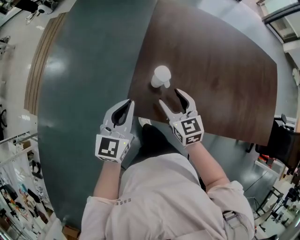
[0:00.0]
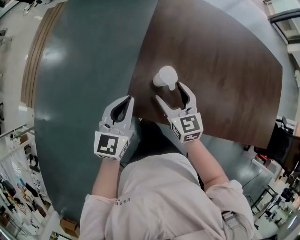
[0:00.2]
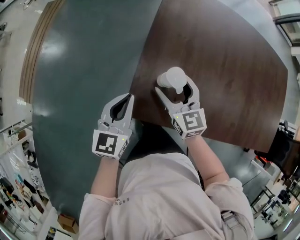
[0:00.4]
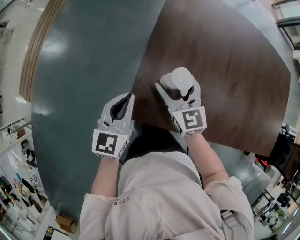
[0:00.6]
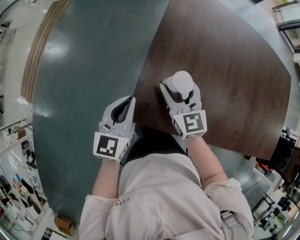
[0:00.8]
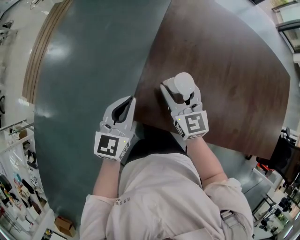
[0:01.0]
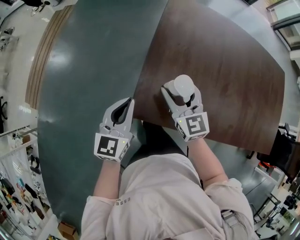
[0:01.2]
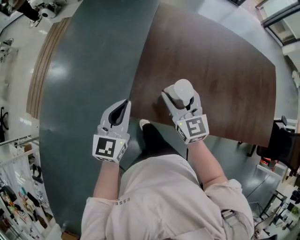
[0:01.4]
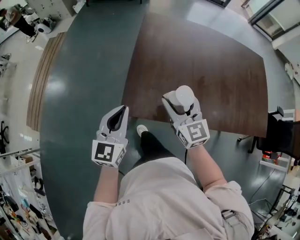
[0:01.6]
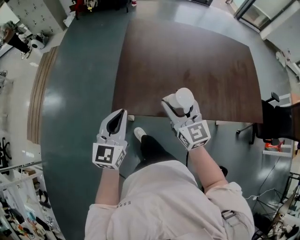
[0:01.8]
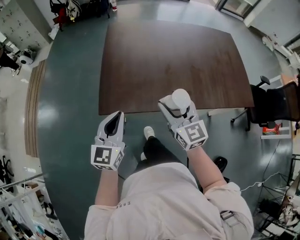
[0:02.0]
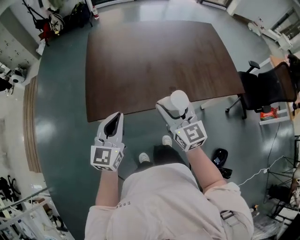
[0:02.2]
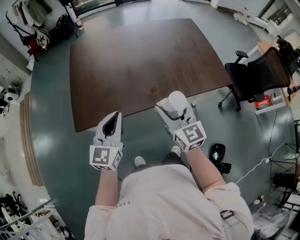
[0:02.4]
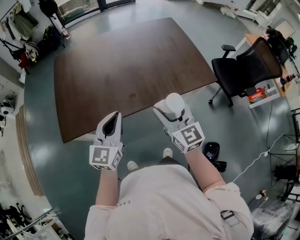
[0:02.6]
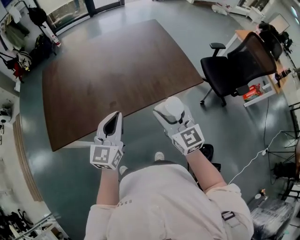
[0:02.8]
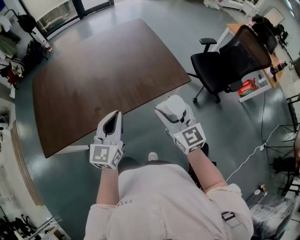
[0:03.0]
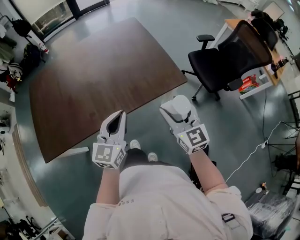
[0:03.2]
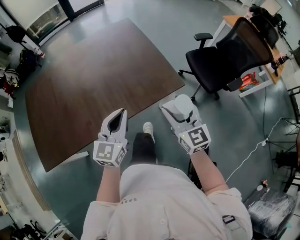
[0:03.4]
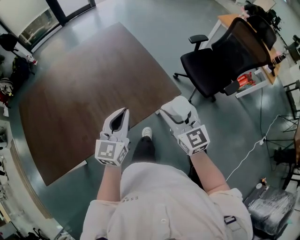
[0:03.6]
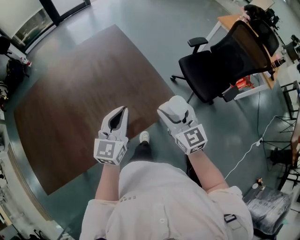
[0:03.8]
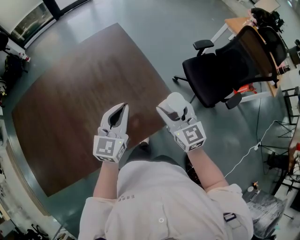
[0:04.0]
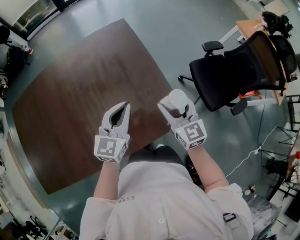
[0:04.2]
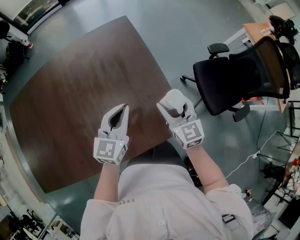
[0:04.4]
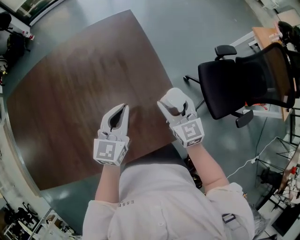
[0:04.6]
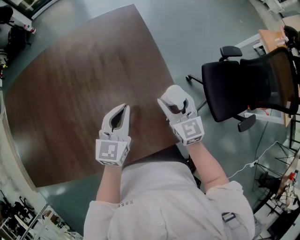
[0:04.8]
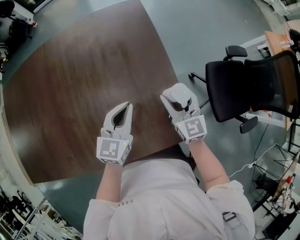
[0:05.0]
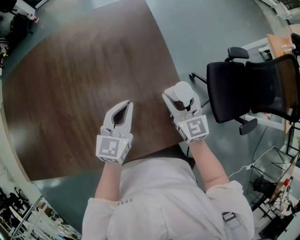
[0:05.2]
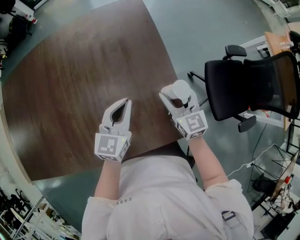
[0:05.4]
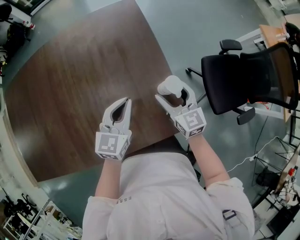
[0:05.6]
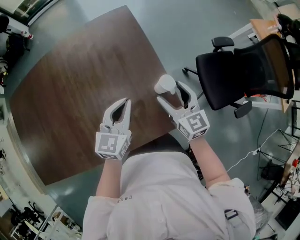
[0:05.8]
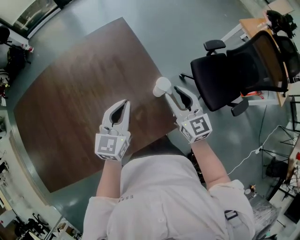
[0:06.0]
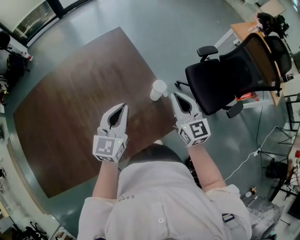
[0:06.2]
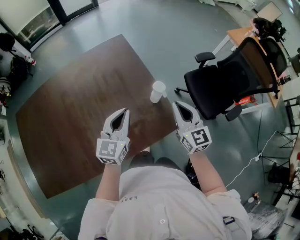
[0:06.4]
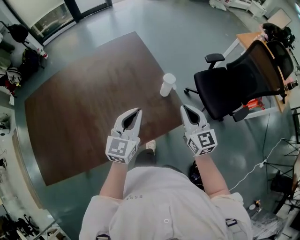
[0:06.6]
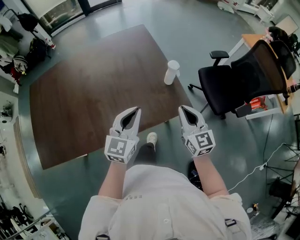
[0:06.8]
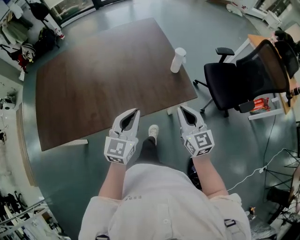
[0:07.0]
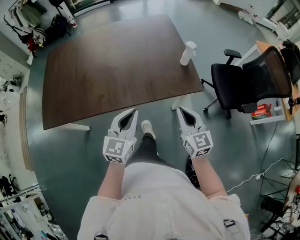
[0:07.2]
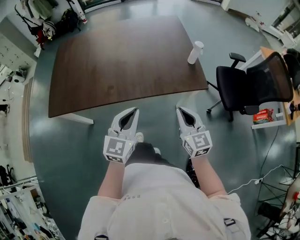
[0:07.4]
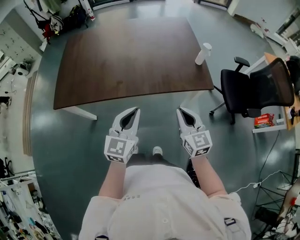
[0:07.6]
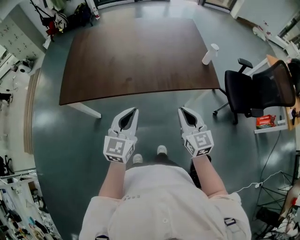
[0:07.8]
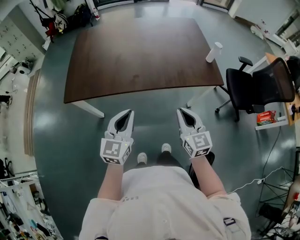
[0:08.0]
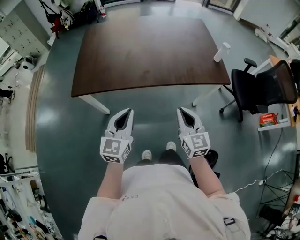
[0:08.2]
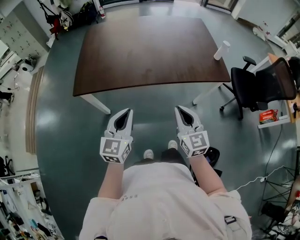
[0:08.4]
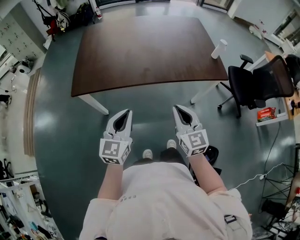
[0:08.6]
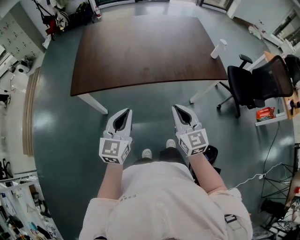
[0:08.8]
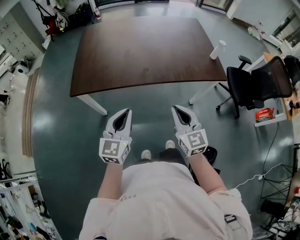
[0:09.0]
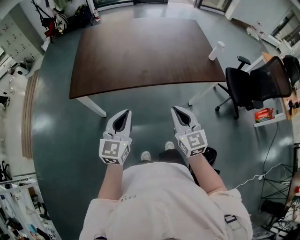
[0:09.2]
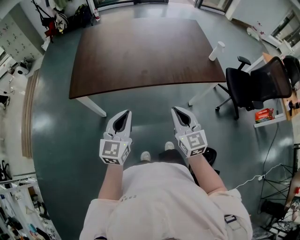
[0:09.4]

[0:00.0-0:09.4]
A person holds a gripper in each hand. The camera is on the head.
0:00.0 to 0:01.6: The left gripper moves some 10 cm downward and comes back. Meanwhile the right gripper is displaced upward by approximately 10 cm, and rotates about 20 degrees.
0:01.6 to 0:03.2: The pair of grippers is taken some 70 cm. The left gripper swivels some 40 degrees; the right gripper turns by about 30 degrees.
0:03.2 to 0:04.8: Both grippers move forward and downward, some 40 cm.
0:04.8 to 0:06.2: The left gripper is displaced upward by roughly 10 cm. Meanwhile the right gripper travels upward and backward by approximately 15 cm, and closes up.
0:06.2 to 0:07.8: The two grippers travel together, backward and to the left, roughly 50 cm. The right gripper rotates approximately 20 degrees. The left gripper rotates some 20 degrees.
0:07.8 to 0:09.4: Both grippers travel together to the left and backward, approximately 15 cm.

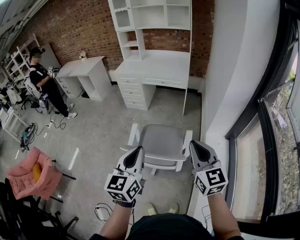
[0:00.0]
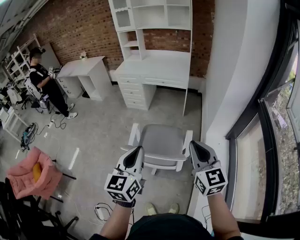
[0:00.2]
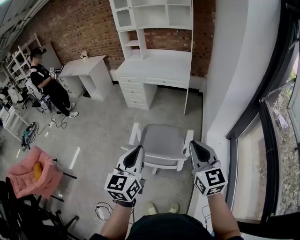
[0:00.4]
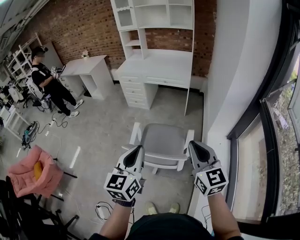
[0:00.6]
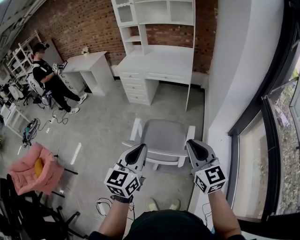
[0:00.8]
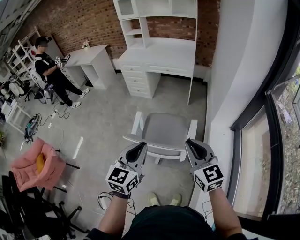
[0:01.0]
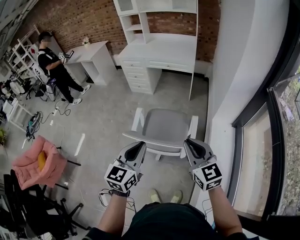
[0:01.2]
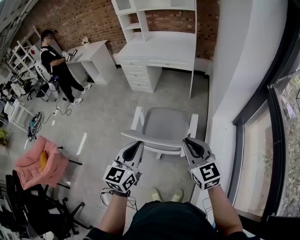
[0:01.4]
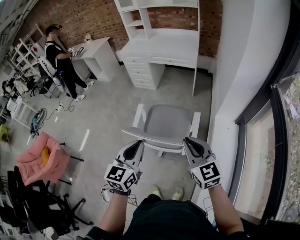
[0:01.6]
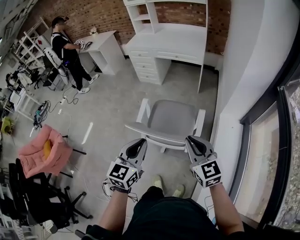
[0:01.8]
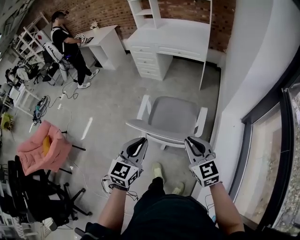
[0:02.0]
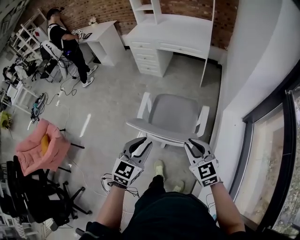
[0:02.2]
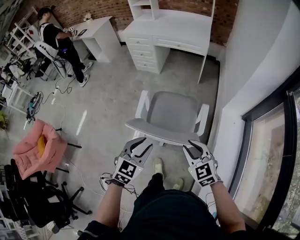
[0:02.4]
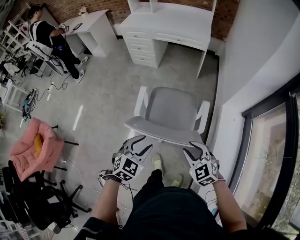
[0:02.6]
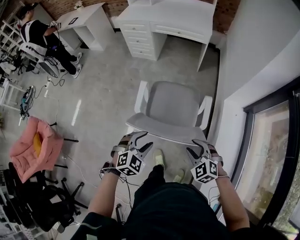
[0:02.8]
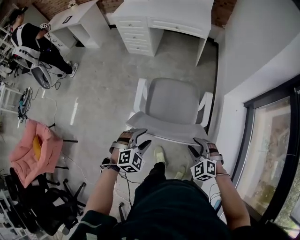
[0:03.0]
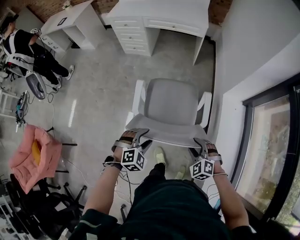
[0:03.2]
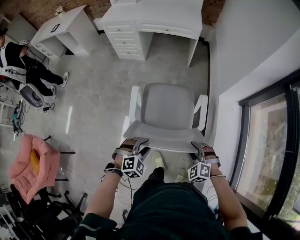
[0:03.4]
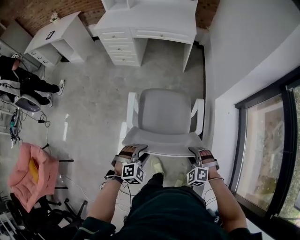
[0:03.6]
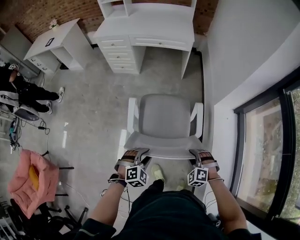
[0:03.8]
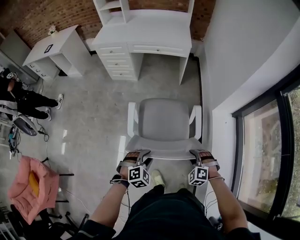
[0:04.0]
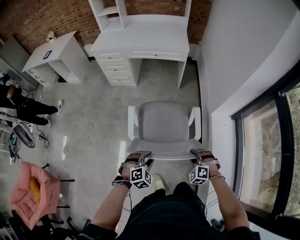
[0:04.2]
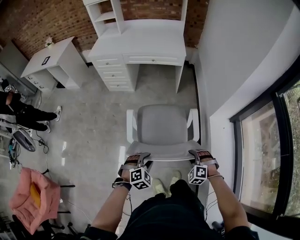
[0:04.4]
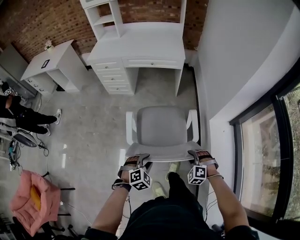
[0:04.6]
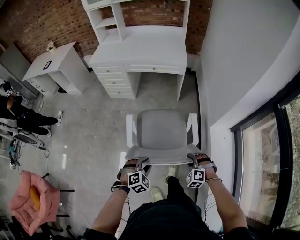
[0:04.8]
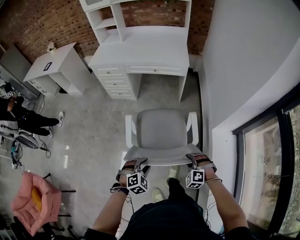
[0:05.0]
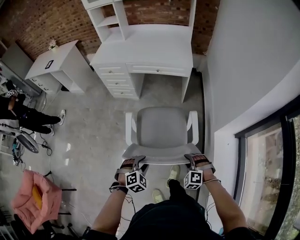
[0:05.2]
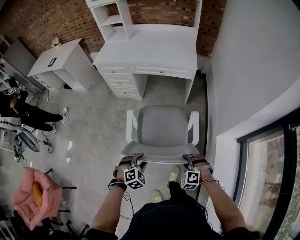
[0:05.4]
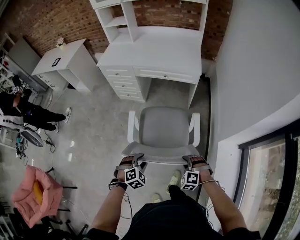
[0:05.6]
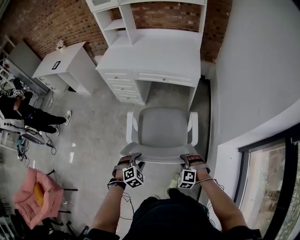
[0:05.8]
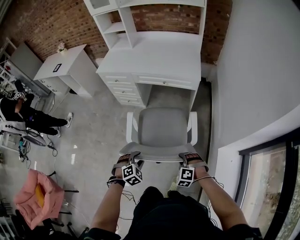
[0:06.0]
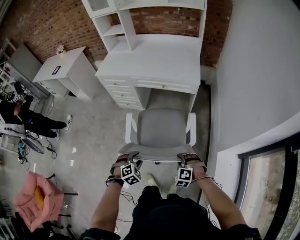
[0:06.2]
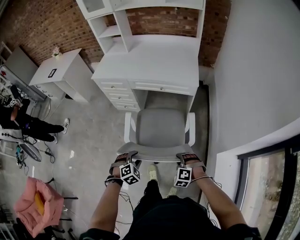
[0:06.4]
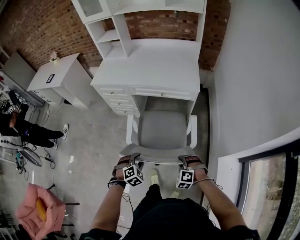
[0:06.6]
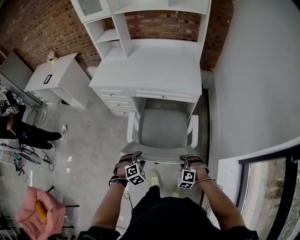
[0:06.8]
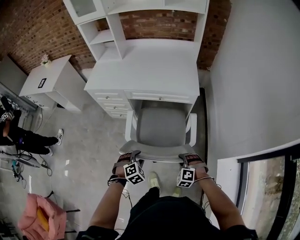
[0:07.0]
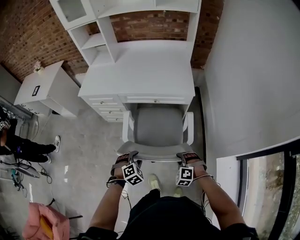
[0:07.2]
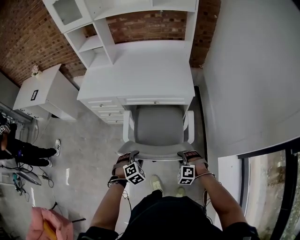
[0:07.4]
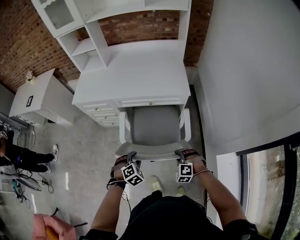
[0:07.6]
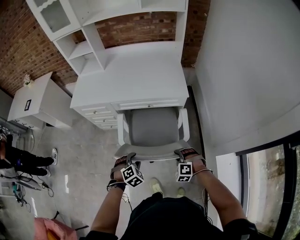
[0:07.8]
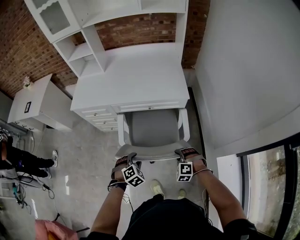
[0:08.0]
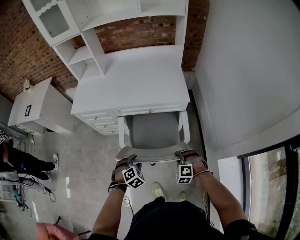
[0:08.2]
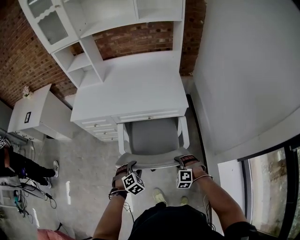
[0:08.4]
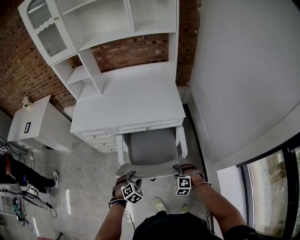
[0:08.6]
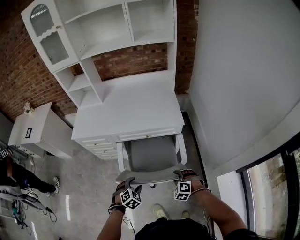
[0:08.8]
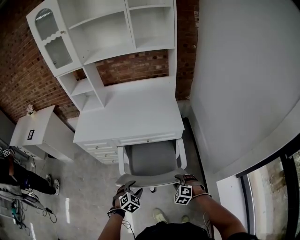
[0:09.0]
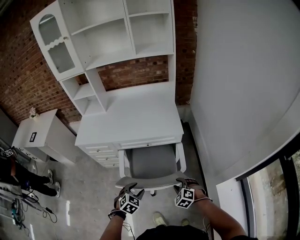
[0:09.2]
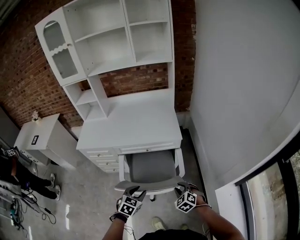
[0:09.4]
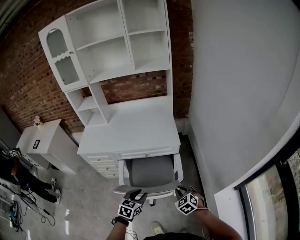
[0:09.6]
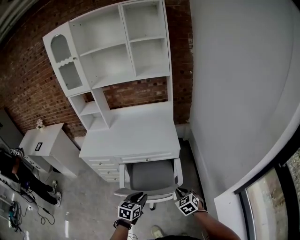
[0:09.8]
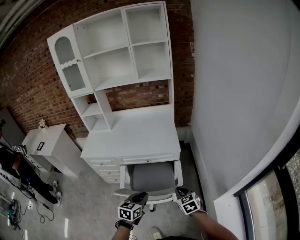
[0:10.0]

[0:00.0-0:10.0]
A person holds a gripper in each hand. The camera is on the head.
0:00.0 to 0:01.4: The two grippers go about 5 cm downward.
0:01.4 to 0:02.8: The two grippers go some 20 cm downward. The right gripper points its fingers approximately 40 degrees further downward, and opens its fingers, while the left gripper angles its fingers downward, by some 40 degrees, and opens its fingers.
0:02.8 to 0:04.2: The grippers both shift forward and downward by approximately 15 cm. The right gripper changes its angle by roughly 30 degrees.
0:04.2 to 0:05.8: Both grippers travel together forward, about 25 cm.
0:05.8 to 0:07.2: Both grippers move forward, some 20 cm.
0:07.2 to 0:08.6: Both grippers travel together forward, some 5 cm.
0:08.6 to 0:10.0: The two grippers go some 20 cm upward and to the right. The left gripper rotates around the line of its fingers by roughly 40 degrees, counterclockwise from behind, and closes up; the right gripper rotates around the line of its fingers by approximately 50 degrees, clockwise from behind, and closes its fingers.

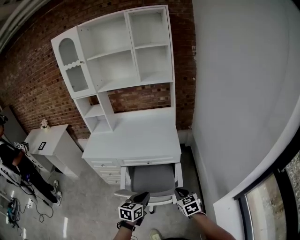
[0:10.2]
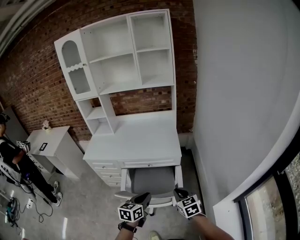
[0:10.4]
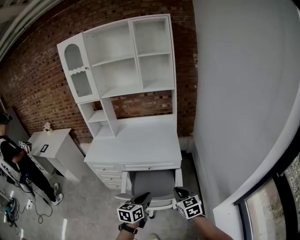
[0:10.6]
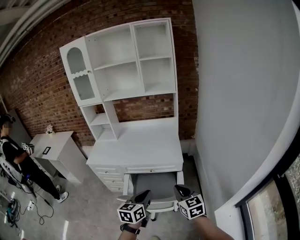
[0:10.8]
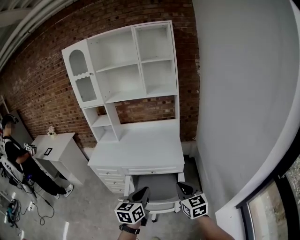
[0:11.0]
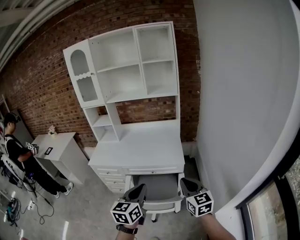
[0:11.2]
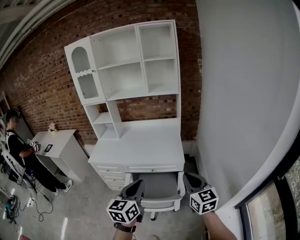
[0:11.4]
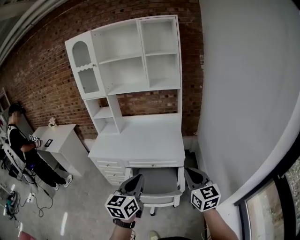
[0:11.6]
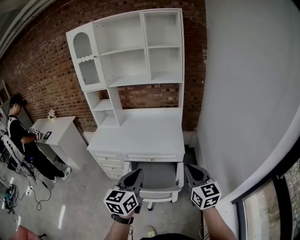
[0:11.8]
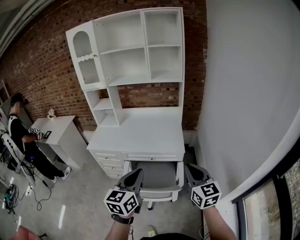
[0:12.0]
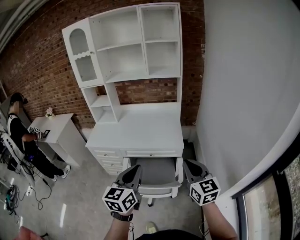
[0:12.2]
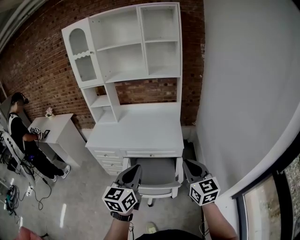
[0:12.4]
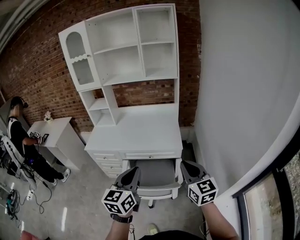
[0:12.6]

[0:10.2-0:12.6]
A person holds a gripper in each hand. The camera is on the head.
0:10.2 to 0:11.4: Both grippers move upward, some 20 cm. The left gripper swivels roughly 20 degrees; the right gripper changes its angle by roughly 30 degrees.
0:11.4 to 0:12.6: The grippers stay close to where they were, moving slightly.

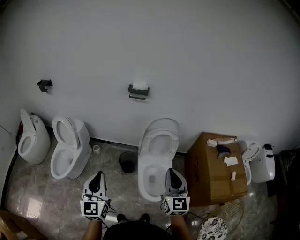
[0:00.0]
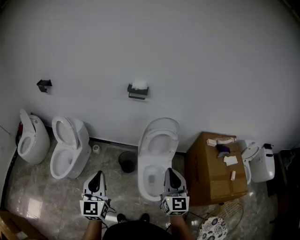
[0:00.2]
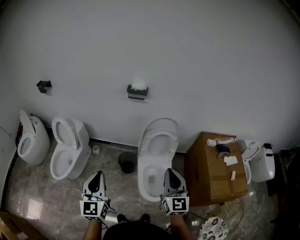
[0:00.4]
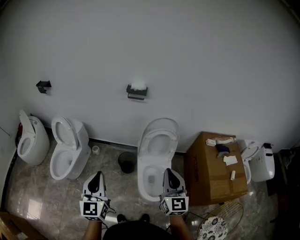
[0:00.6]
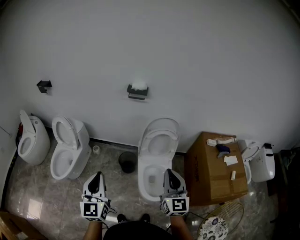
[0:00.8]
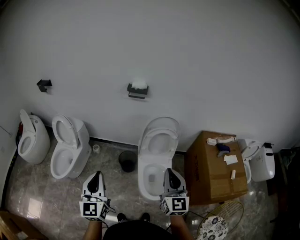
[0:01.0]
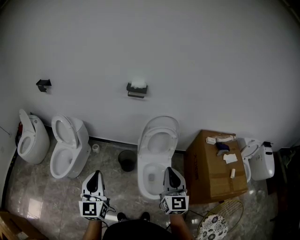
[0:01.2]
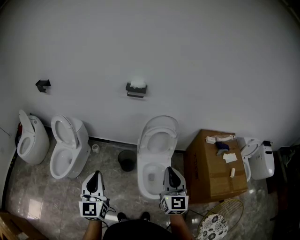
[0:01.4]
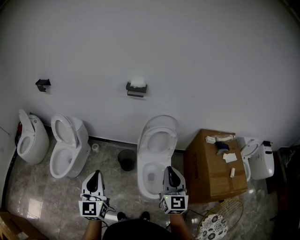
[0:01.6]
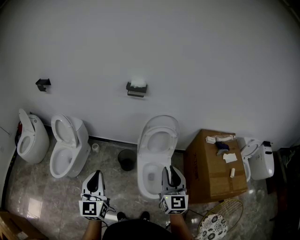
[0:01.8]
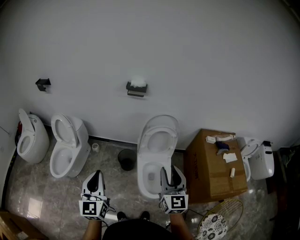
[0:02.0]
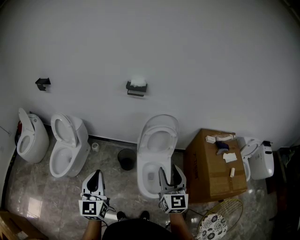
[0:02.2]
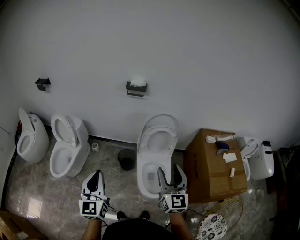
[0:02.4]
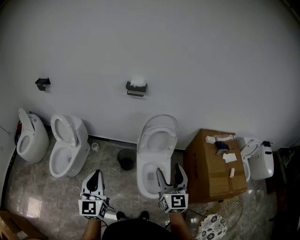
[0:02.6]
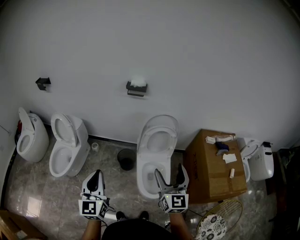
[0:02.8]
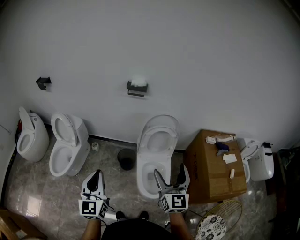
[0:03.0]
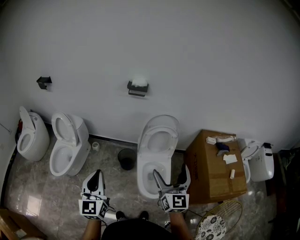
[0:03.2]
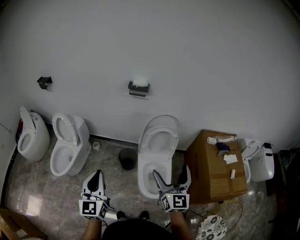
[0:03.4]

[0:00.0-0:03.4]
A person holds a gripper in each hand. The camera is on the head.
0:00.0 to 0:01.6: The grippers move only a little.
0:01.6 to 0:03.4: The right gripper opens up.
